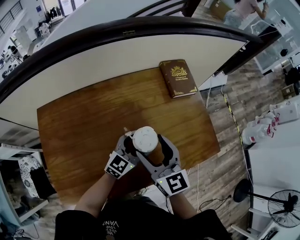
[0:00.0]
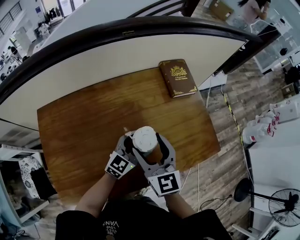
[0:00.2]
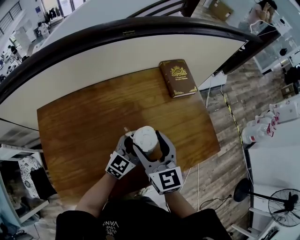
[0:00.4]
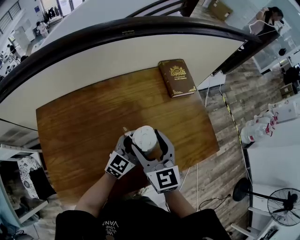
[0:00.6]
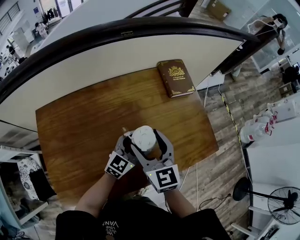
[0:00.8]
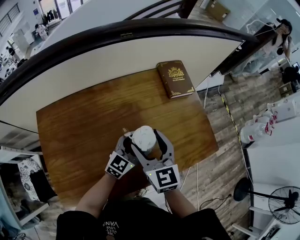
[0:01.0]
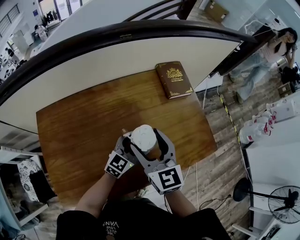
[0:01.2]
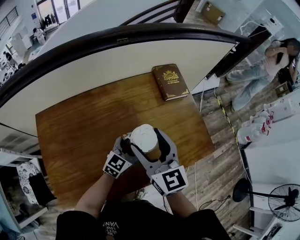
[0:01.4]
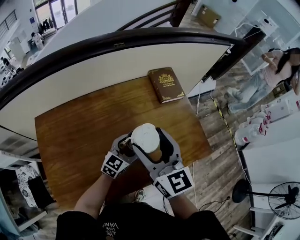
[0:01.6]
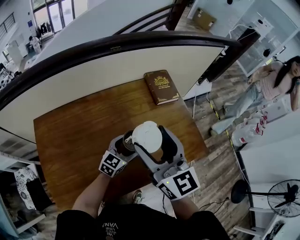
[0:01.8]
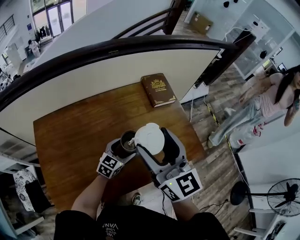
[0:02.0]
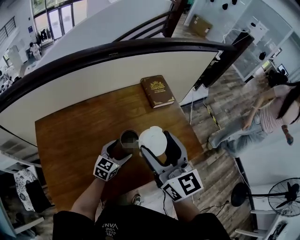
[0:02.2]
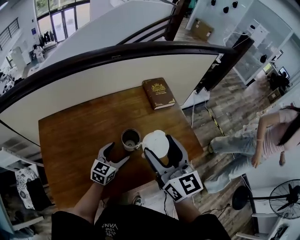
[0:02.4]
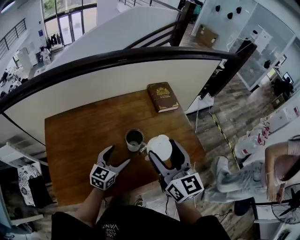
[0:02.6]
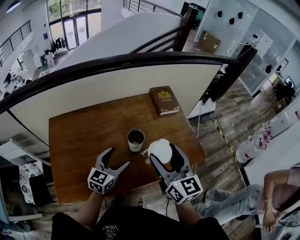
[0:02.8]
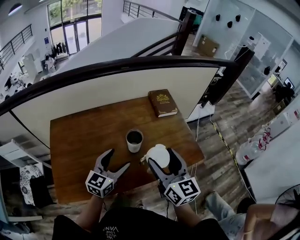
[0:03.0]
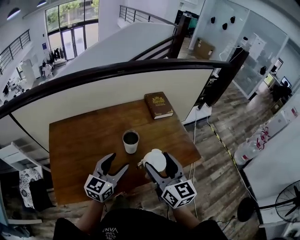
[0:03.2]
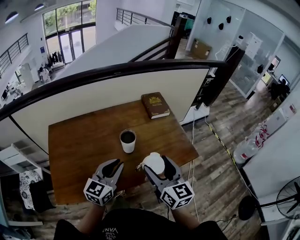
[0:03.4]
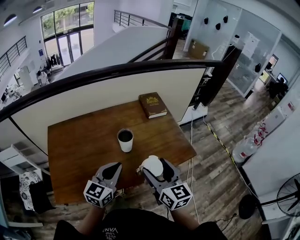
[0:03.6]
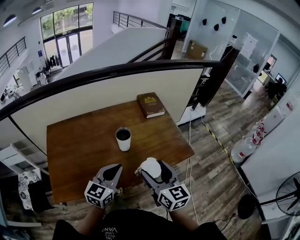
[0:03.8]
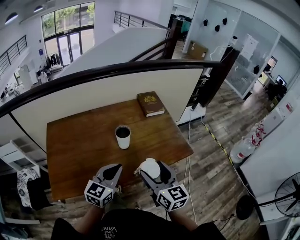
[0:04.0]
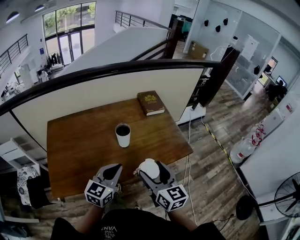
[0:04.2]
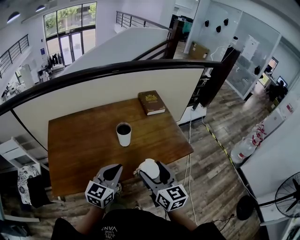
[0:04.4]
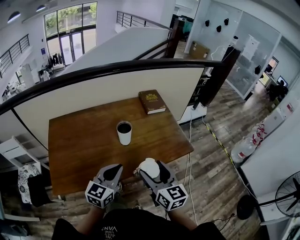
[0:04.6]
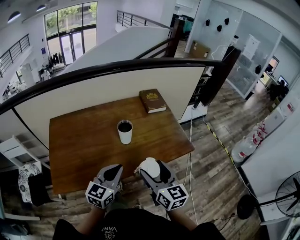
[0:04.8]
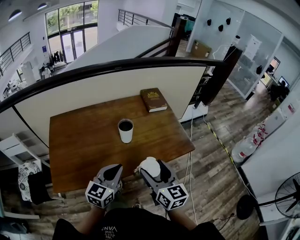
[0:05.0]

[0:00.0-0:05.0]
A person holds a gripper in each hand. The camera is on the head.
0:00.0 to 0:01.6: The right gripper travels upward by approximately 10 cm.
0:01.6 to 0:03.4: The right gripper goes about 20 cm backward and to the right, while the left gripper travels upward and backward by approximately 20 cm, and closes.
0:03.4 to 0:05.0: The grippers both shift backward by approximately 10 cm.

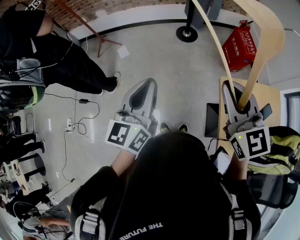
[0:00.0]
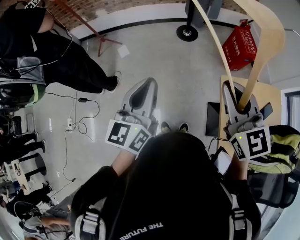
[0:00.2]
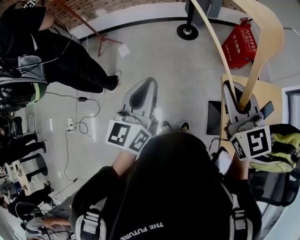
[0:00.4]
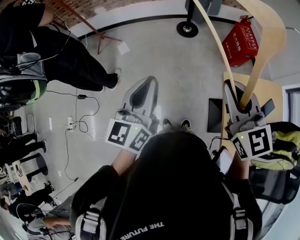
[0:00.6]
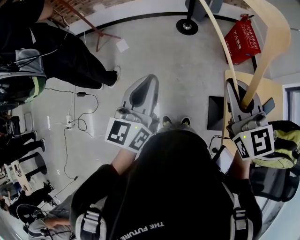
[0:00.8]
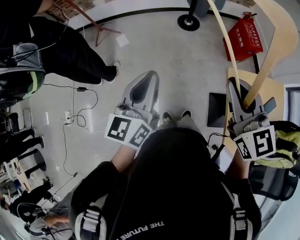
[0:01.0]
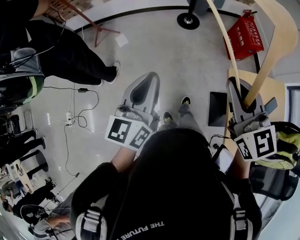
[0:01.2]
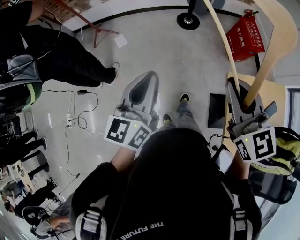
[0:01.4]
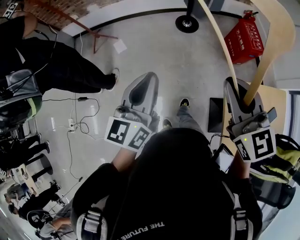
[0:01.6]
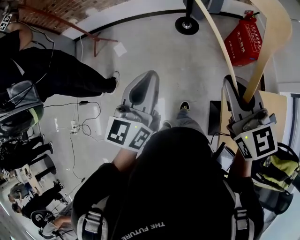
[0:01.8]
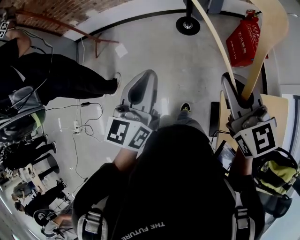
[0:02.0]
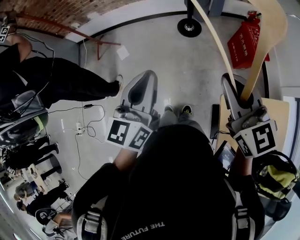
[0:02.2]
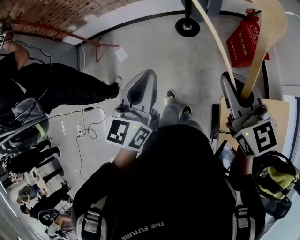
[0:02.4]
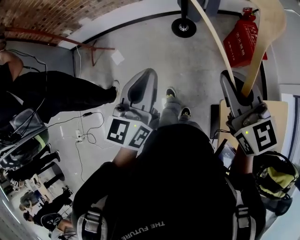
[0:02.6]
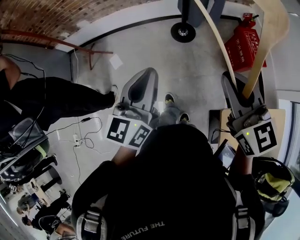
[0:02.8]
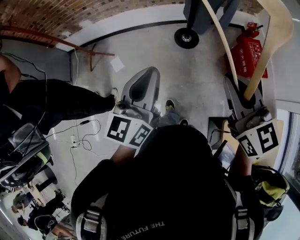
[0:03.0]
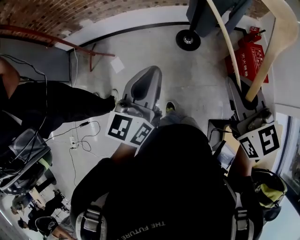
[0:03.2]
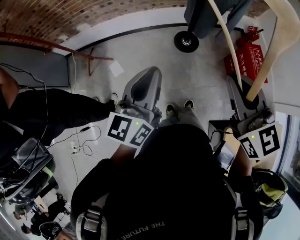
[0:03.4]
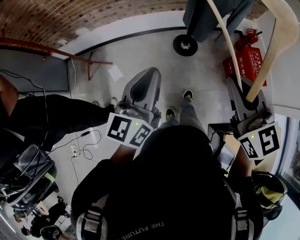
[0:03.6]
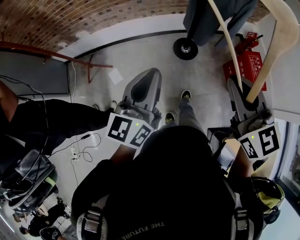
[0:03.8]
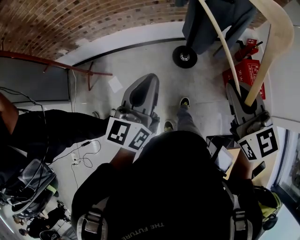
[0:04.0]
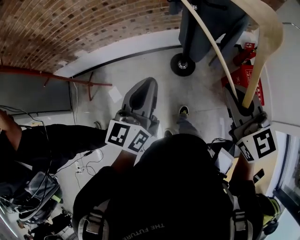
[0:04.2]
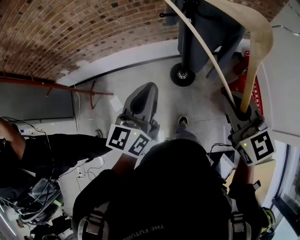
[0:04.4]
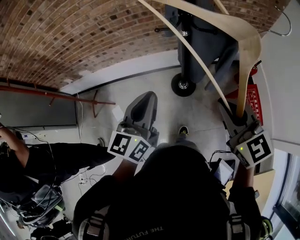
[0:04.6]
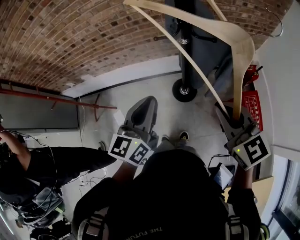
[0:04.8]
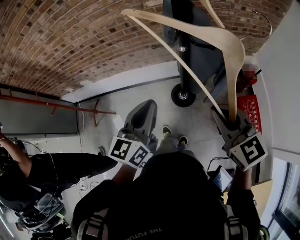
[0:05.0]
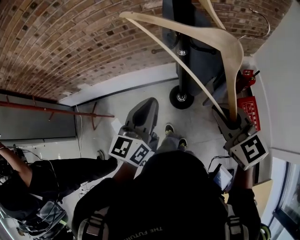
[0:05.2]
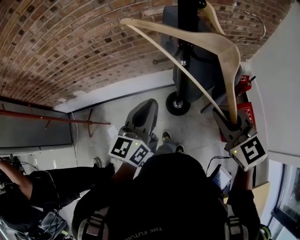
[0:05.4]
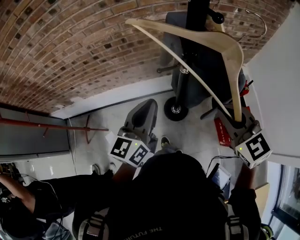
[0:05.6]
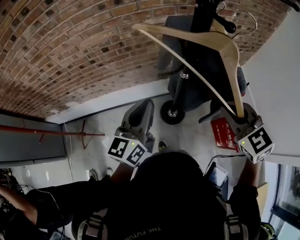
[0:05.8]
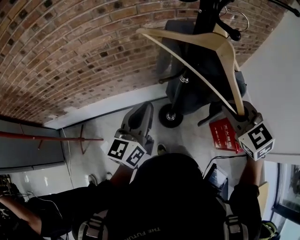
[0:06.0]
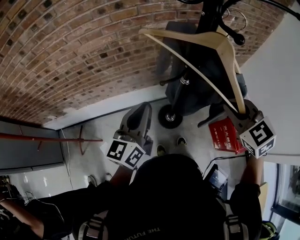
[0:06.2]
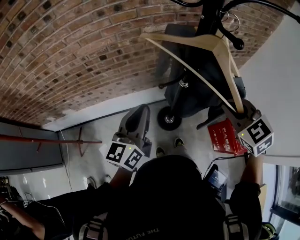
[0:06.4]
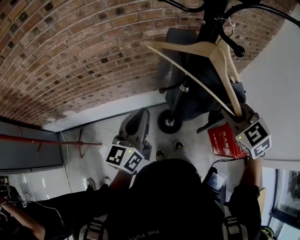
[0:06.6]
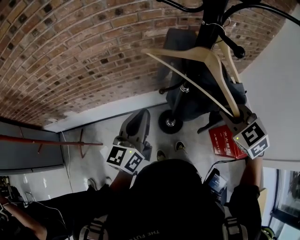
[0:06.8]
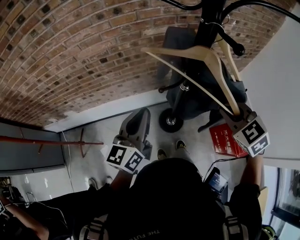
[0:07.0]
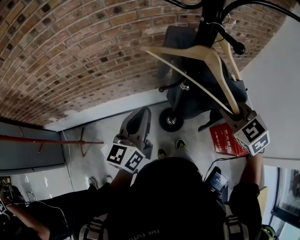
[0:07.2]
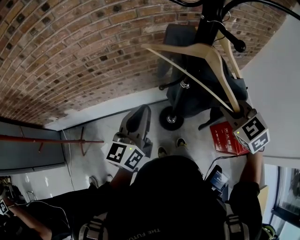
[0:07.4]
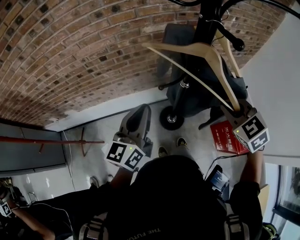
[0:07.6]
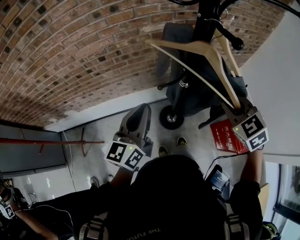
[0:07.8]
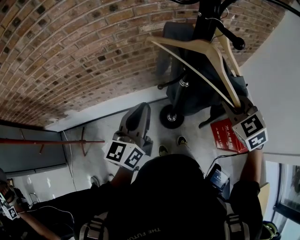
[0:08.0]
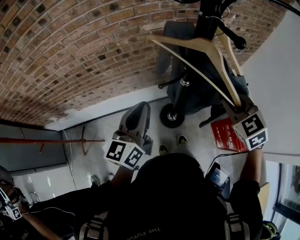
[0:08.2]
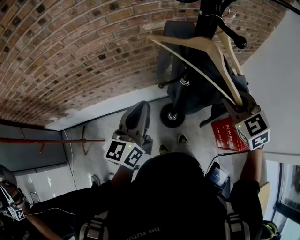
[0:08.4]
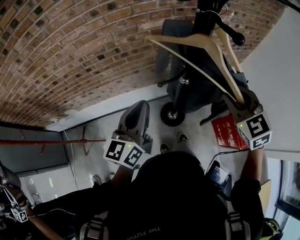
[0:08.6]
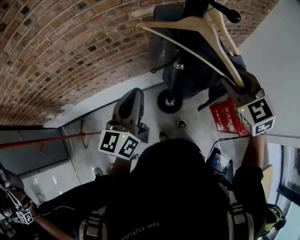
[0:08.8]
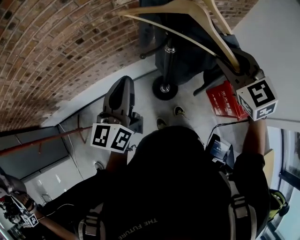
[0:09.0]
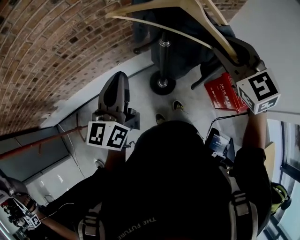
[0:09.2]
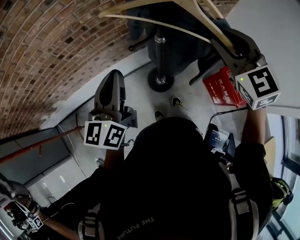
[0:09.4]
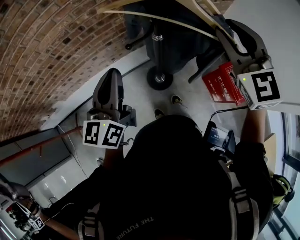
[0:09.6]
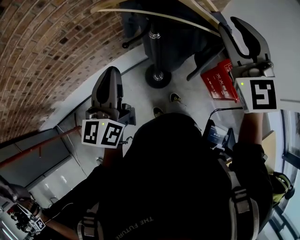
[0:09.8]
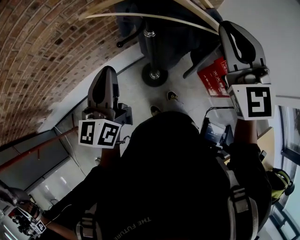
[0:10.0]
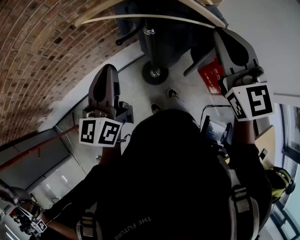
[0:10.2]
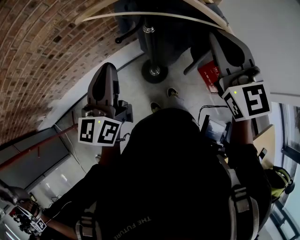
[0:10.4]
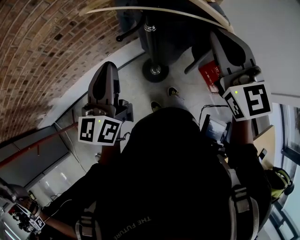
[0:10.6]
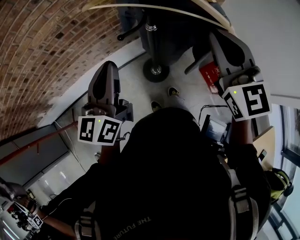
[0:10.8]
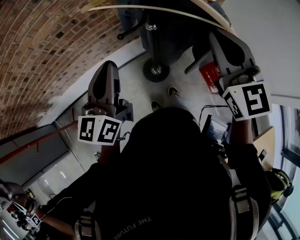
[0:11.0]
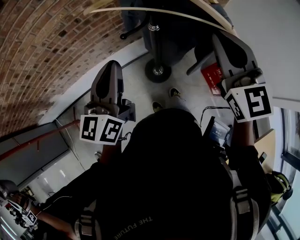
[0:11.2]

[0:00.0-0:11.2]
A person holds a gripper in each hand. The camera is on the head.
0:00.0 to 0:01.6: The grippers both shift forward by about 10 cm.
0:01.6 to 0:03.2: The two grippers go roughly 30 cm forward.
0:03.2 to 0:04.8: Both grippers travel together forward and to the right, approximately 35 cm.
0:04.8 to 0:06.4: Both grippers travel together forward, approximately 20 cm. The right gripper changes its angle by approximately 30 degrees.
0:06.4 to 0:08.0: There are only small adjustments of the grippers.
0:08.0 to 0:09.6: The right gripper moves upward, roughly 10 cm, turns by roughly 30 degrees, and opens its fingers.
0:09.6 to 0:11.2: The right gripper closes.

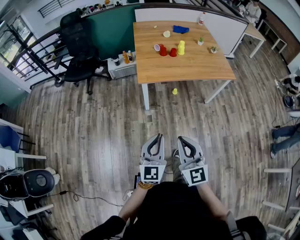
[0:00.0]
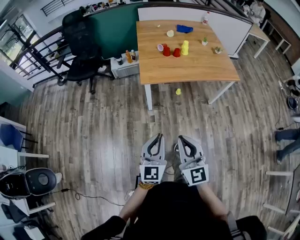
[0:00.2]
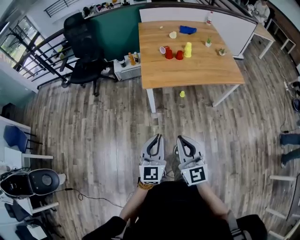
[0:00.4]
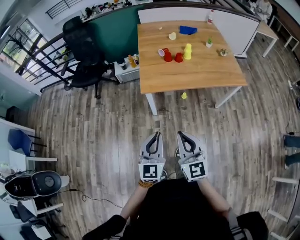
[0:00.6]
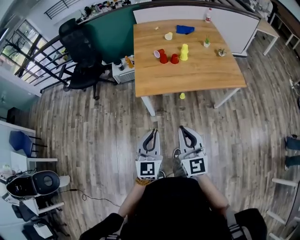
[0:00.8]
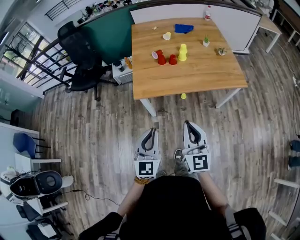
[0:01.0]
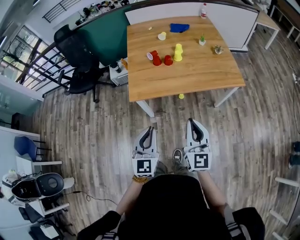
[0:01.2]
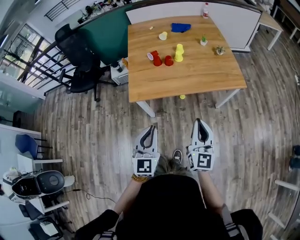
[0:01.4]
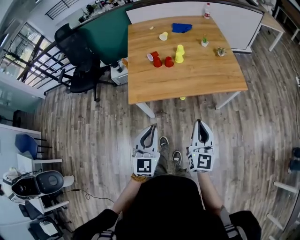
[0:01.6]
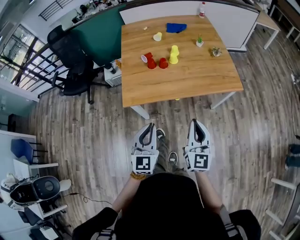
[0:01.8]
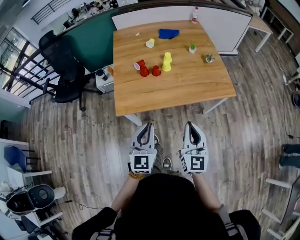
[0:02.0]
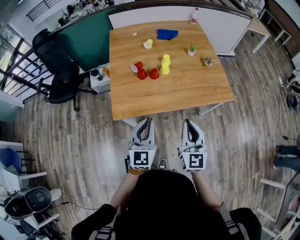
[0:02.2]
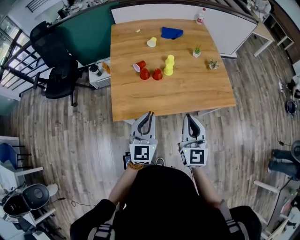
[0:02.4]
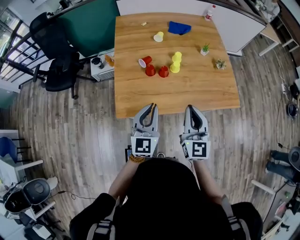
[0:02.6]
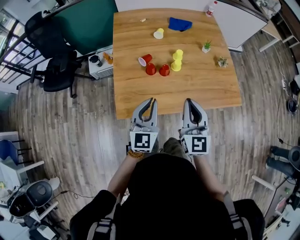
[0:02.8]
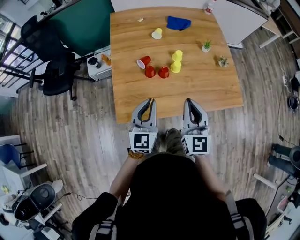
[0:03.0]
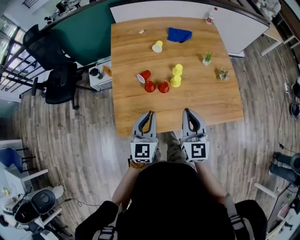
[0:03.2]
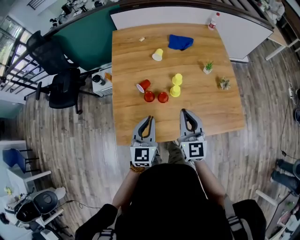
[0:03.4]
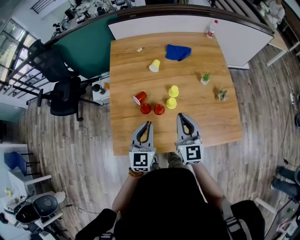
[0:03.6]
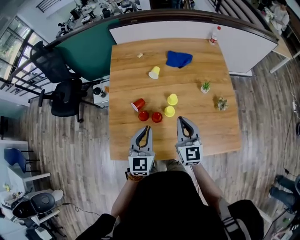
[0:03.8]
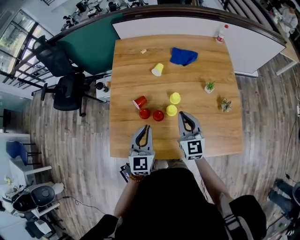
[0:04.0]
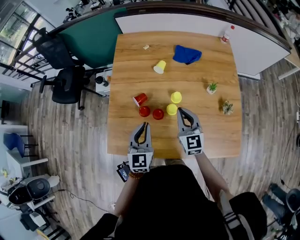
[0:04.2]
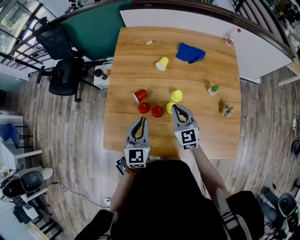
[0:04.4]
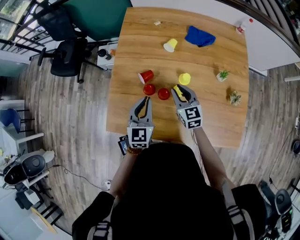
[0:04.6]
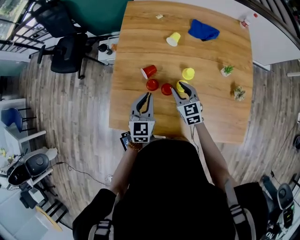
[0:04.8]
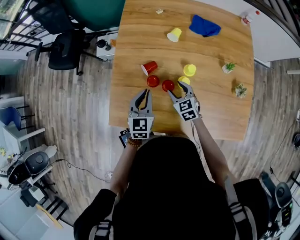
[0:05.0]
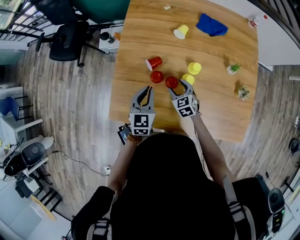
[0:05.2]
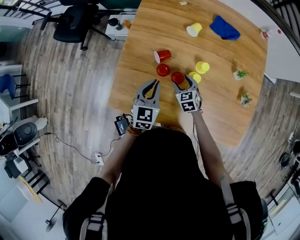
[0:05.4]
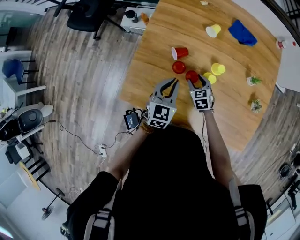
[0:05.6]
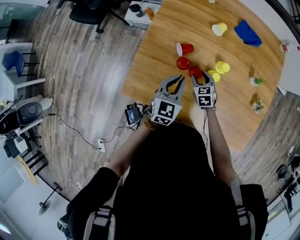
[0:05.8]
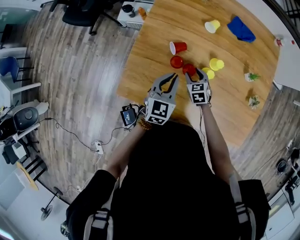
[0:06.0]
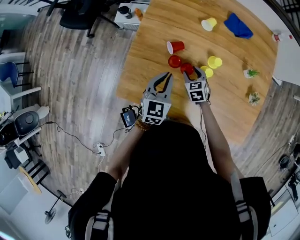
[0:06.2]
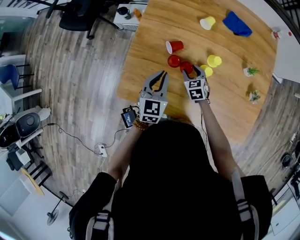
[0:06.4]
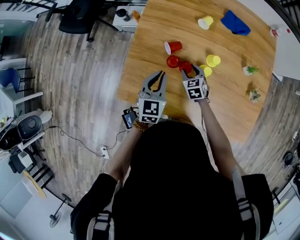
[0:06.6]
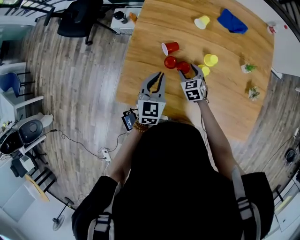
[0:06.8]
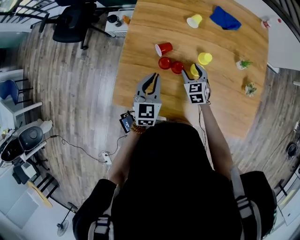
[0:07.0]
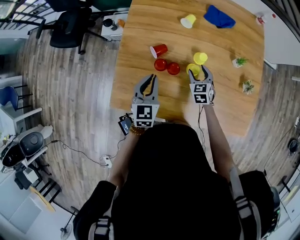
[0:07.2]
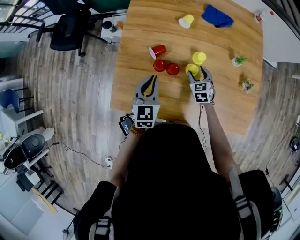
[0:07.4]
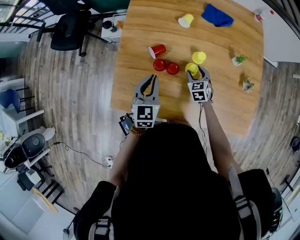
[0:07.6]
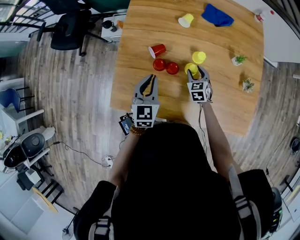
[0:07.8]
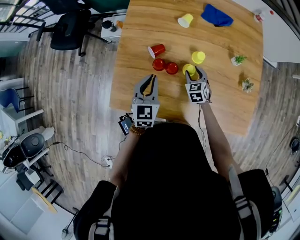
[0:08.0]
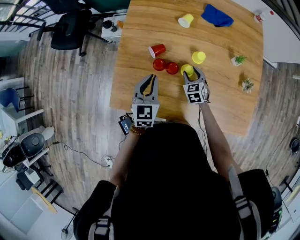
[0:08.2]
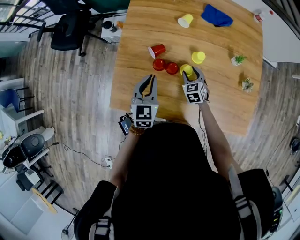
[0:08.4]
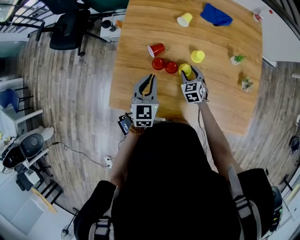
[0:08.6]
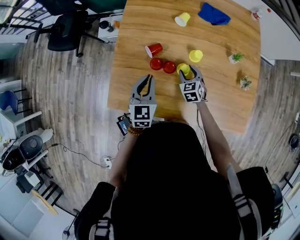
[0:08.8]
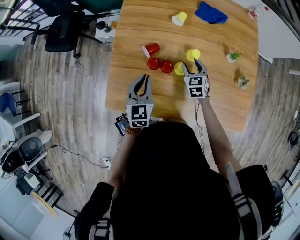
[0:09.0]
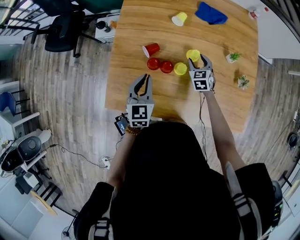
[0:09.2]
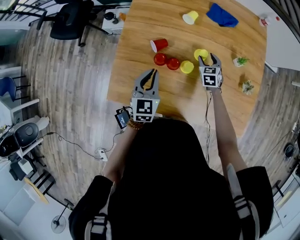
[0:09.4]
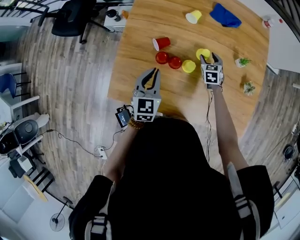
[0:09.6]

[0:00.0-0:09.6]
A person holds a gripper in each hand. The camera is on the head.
0:00.0 to 0:01.6: The two grippers go approximately 30 cm forward and to the right. The right gripper changes its angle by approximately 20 degrees.
0:01.6 to 0:03.2: Both grippers move forward, about 35 cm.
0:03.2 to 0:04.8: The left gripper is displaced forward and downward by roughly 15 cm; the right gripper is displaced forward and downward by roughly 25 cm, swivels about 30 degrees, and opens.
0:04.8 to 0:06.4: The right gripper heads downward, covering some 10 cm, and rotates roughly 20 degrees, while the left gripper changes place by some 5 cm.
0:06.4 to 0:08.0: The right gripper heads to the right, covering approximately 10 cm.
0:08.0 to 0:09.6: The right gripper travels forward and to the right by roughly 10 cm.
